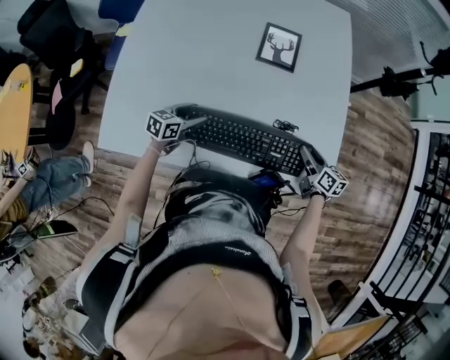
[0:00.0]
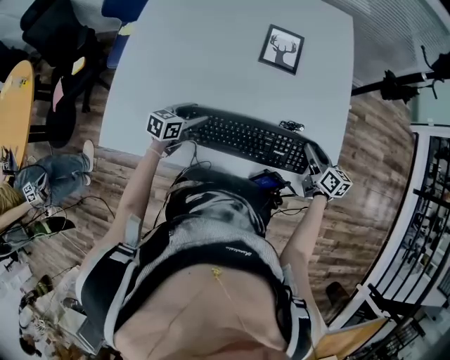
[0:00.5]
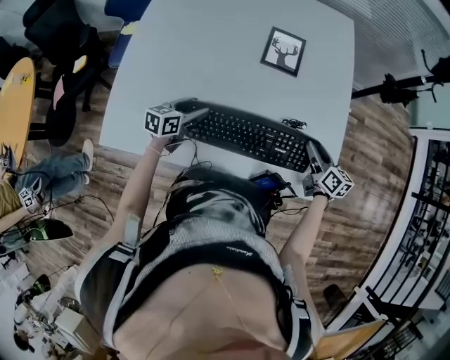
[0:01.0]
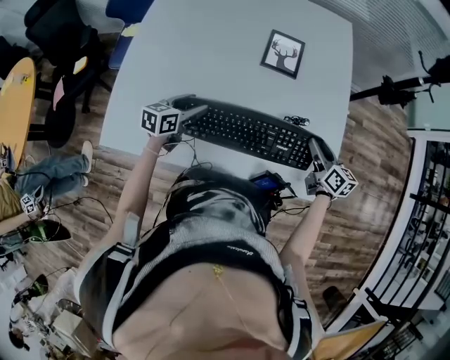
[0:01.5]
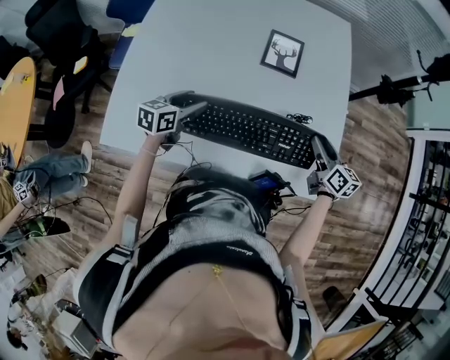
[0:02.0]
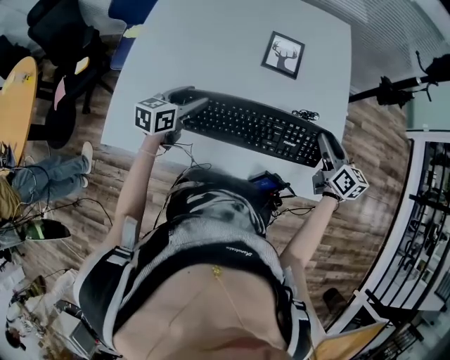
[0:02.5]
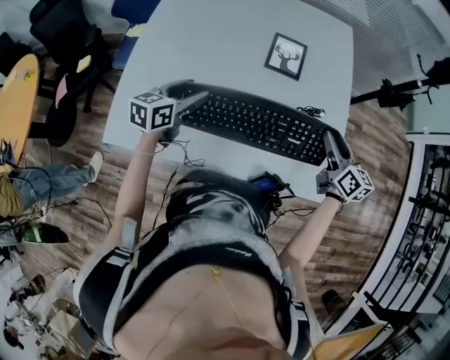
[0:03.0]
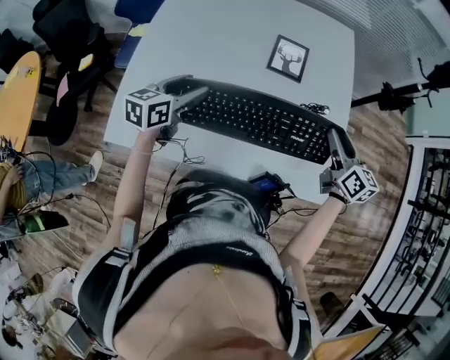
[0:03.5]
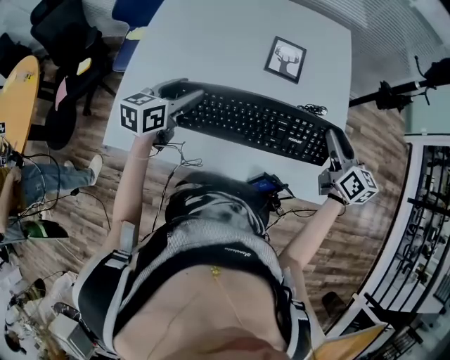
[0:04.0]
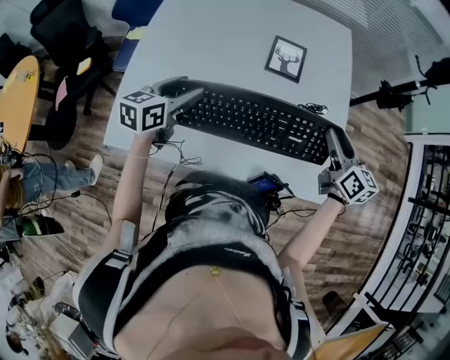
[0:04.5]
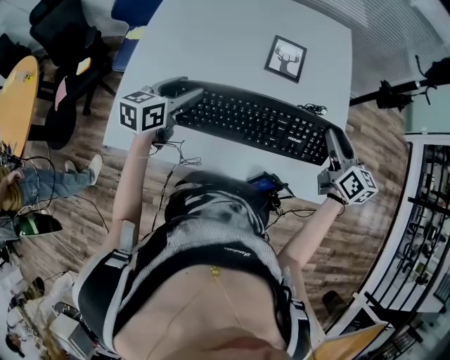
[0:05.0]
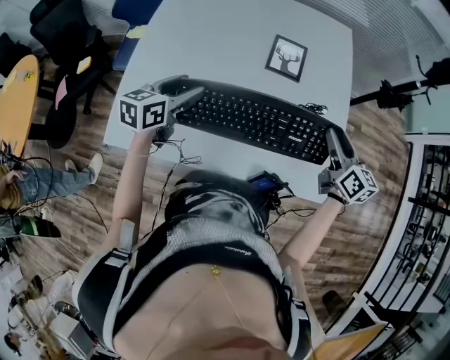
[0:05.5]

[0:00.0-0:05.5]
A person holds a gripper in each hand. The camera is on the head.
0:00.0 to 0:02.0: The grippers both shift upward by about 10 cm.
0:02.0 to 0:03.5: The grippers both shift upward by about 10 cm.
0:03.5 to 0:05.5: Neither gripper changes place.

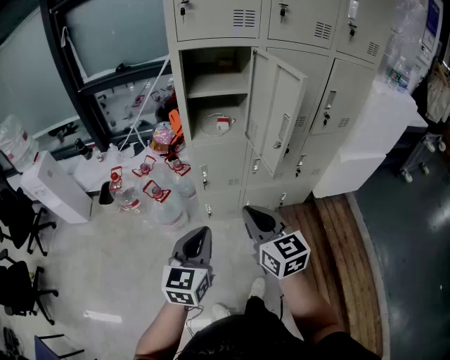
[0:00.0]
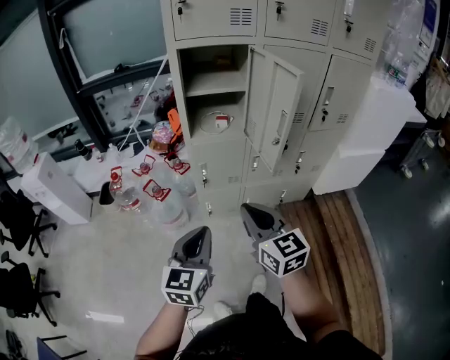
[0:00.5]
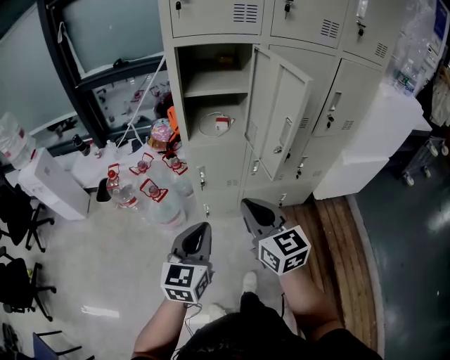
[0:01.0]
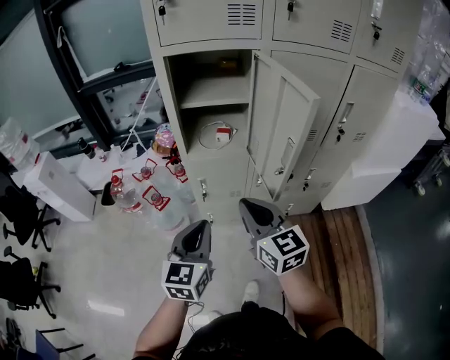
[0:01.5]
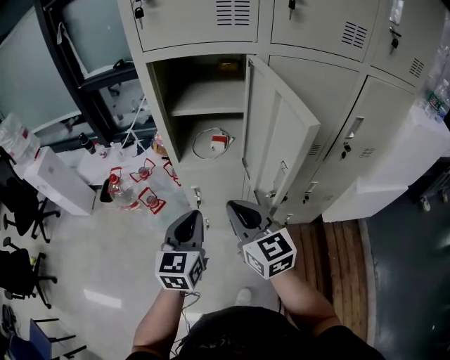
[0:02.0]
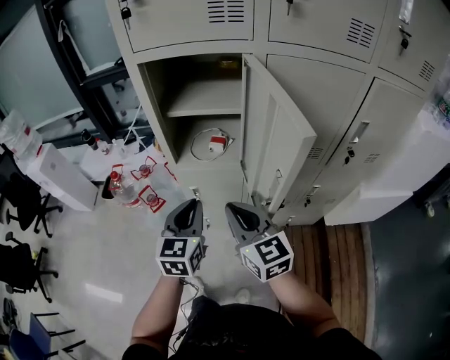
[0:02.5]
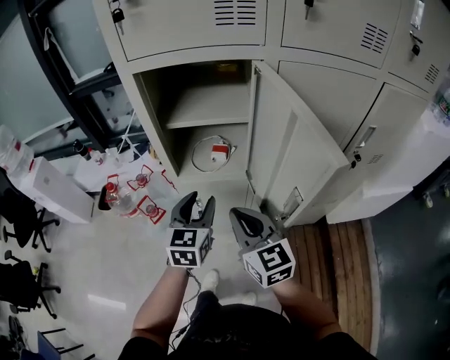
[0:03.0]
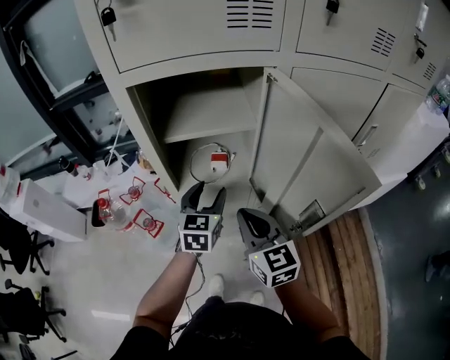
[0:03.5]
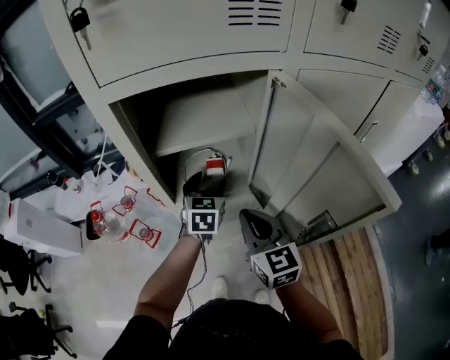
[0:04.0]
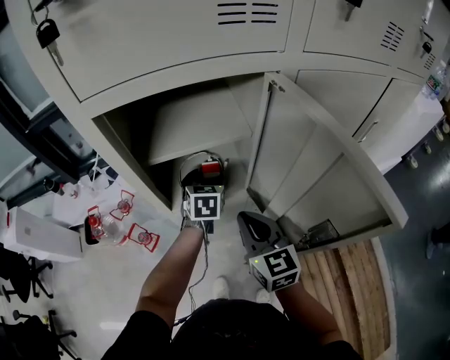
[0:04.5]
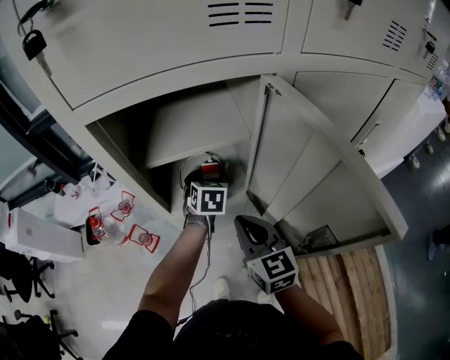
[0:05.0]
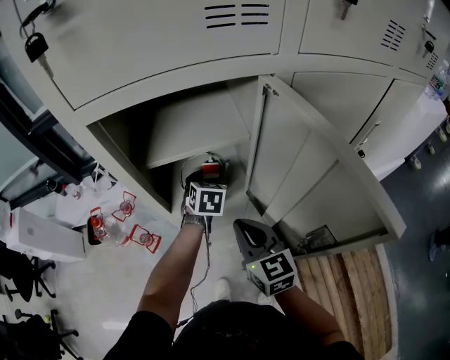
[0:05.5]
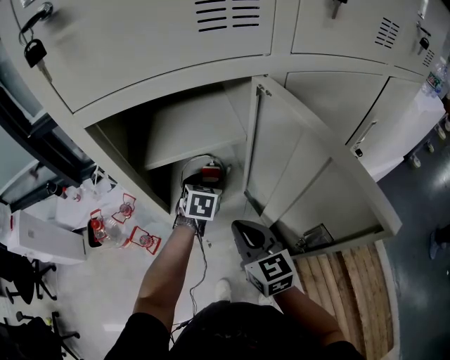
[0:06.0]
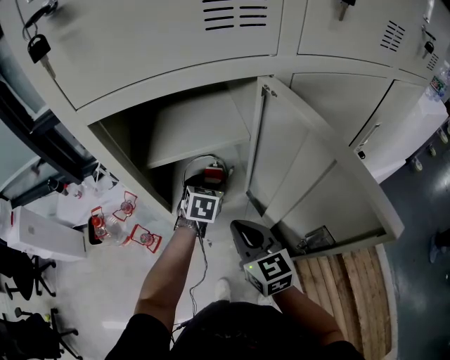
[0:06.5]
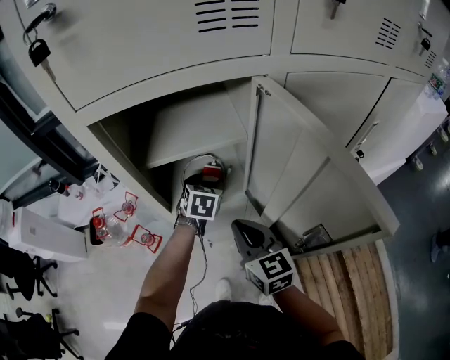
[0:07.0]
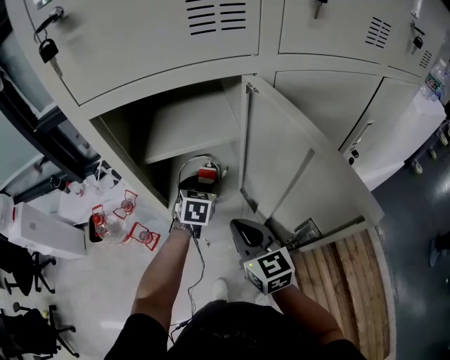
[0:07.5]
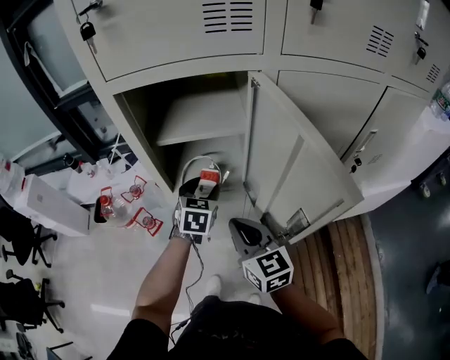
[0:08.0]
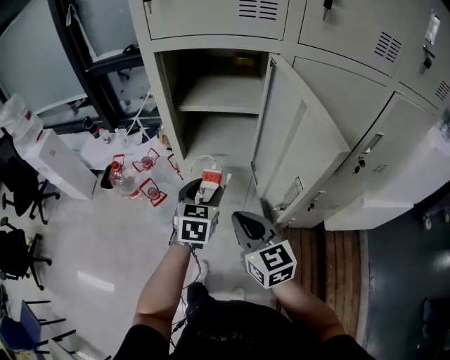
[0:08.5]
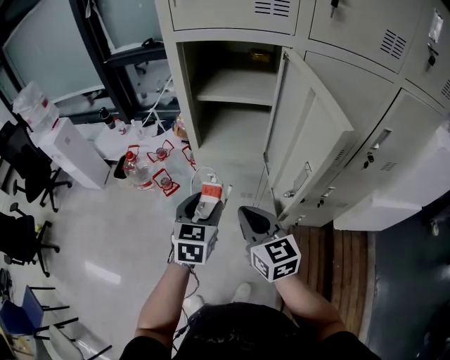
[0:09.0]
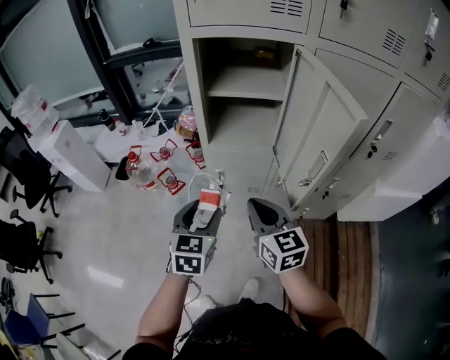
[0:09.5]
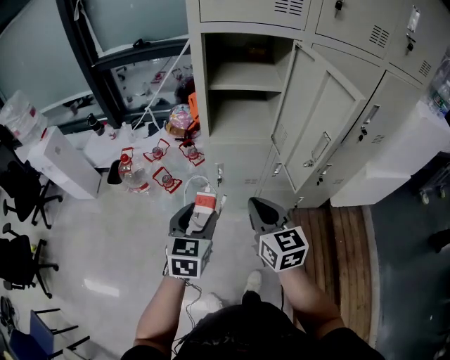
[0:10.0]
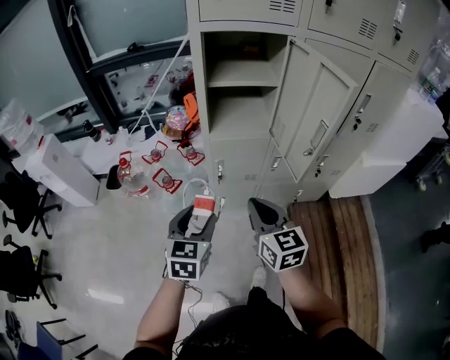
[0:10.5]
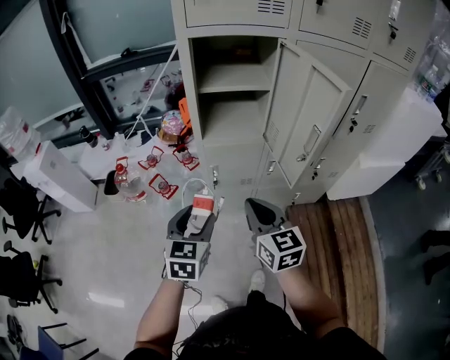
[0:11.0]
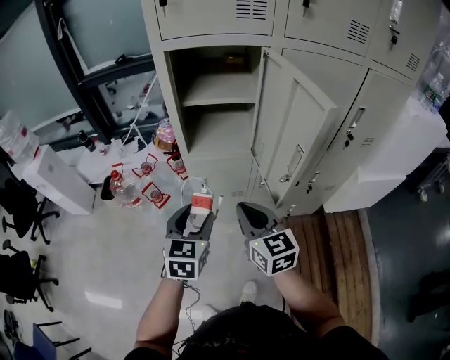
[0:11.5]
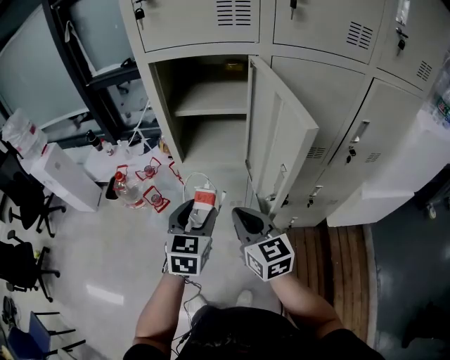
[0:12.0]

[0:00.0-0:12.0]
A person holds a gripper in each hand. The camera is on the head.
0:00.0 to 0:02.0: Both grippers move forward, about 20 cm.
0:02.0 to 0:04.0: The right gripper shifts approximately 15 cm forward, and changes its angle by approximately 20 degrees, while the left gripper is displaced forward by roughly 30 cm, swivels about 20 degrees, and opens.
0:04.0 to 0:06.0: The left gripper moves about 5 cm.
0:06.0 to 0:08.0: The left gripper goes approximately 10 cm backward, while the right gripper moves backward, approximately 5 cm.
0:08.0 to 0:10.0: The right gripper shifts about 15 cm backward and to the left. The left gripper moves backward and to the left, approximately 35 cm.
0:10.0 to 0:12.0: Both grippers move to the right and forward, some 15 cm.

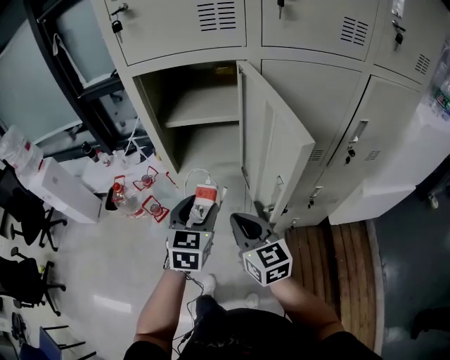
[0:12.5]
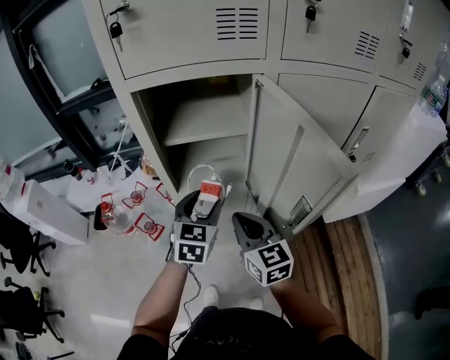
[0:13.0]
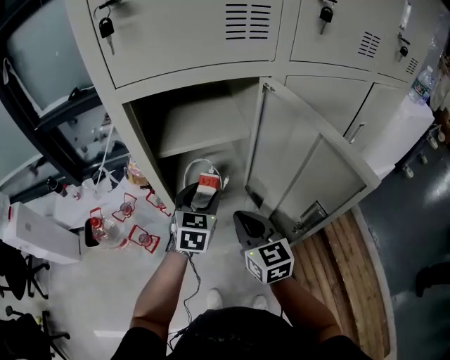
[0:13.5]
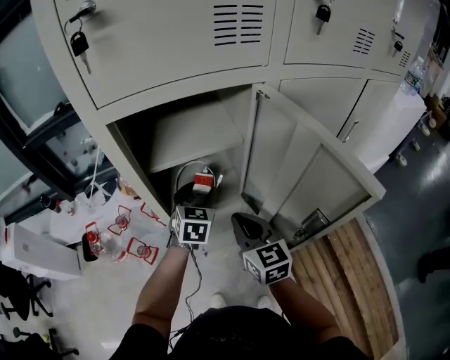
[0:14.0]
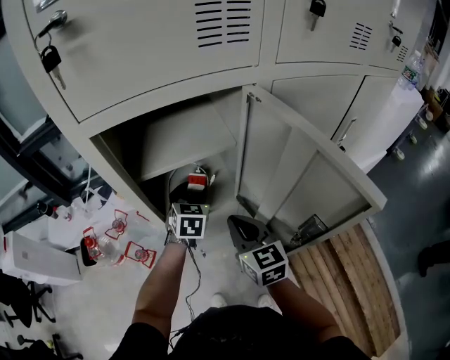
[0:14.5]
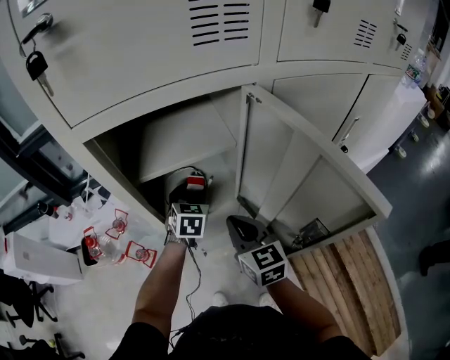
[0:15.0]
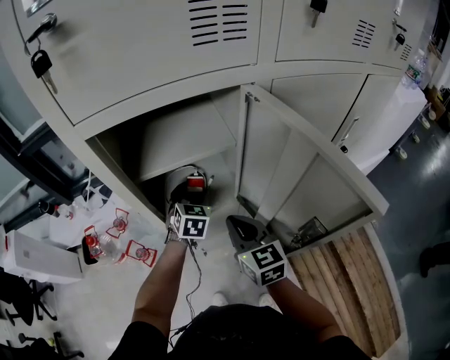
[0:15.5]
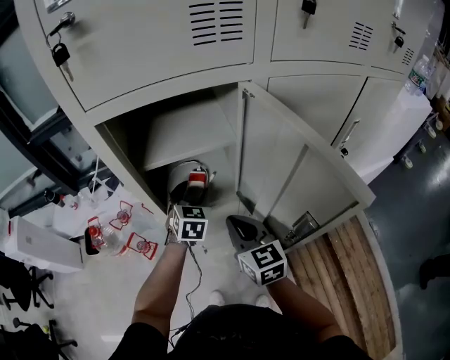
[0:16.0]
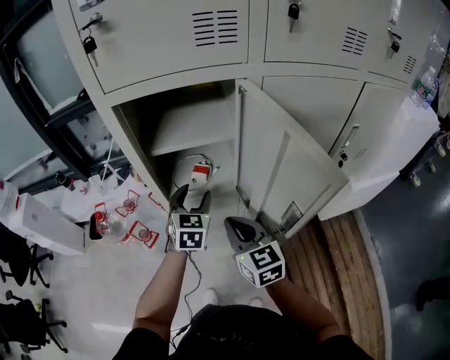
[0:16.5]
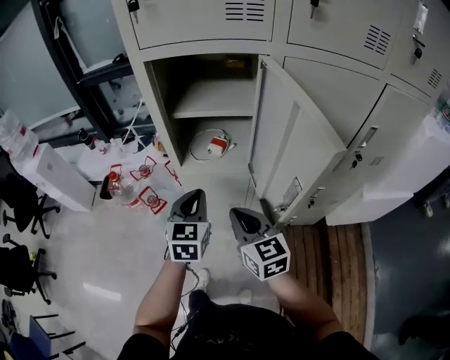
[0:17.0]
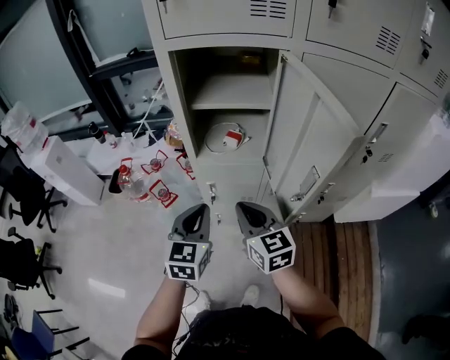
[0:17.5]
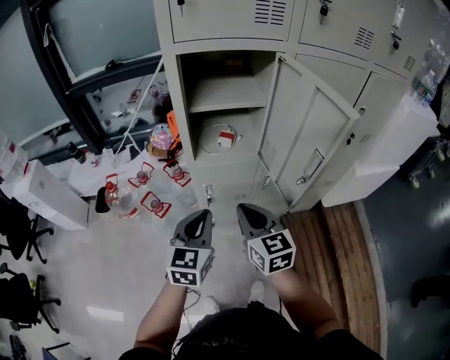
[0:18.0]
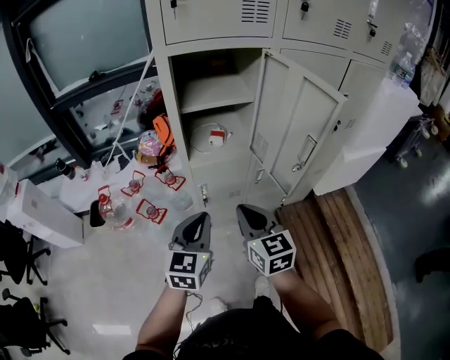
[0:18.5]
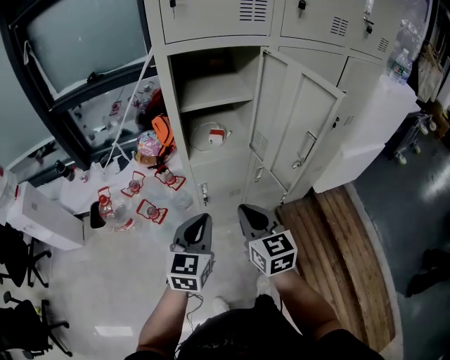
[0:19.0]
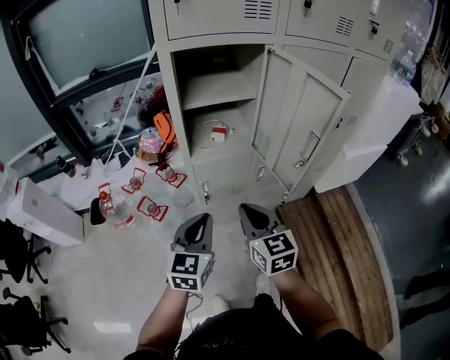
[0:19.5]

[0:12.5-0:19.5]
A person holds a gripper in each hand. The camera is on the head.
0:12.5 to 0:14.5: The right gripper moves forward, about 15 cm, and turns by approximately 20 degrees, while the left gripper goes roughly 25 cm forward.
0:14.5 to 0:16.0: The grippers make only small movements.
0:16.0 to 0:17.5: The right gripper goes some 10 cm backward. The left gripper shifts roughly 25 cm backward, swivels roughly 20 degrees, and closes.
0:17.5 to 0:19.5: The right gripper goes approximately 5 cm backward. Meanwhile the left gripper is displaced backward and to the left by roughly 10 cm.

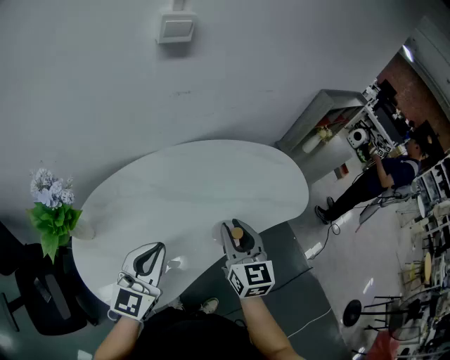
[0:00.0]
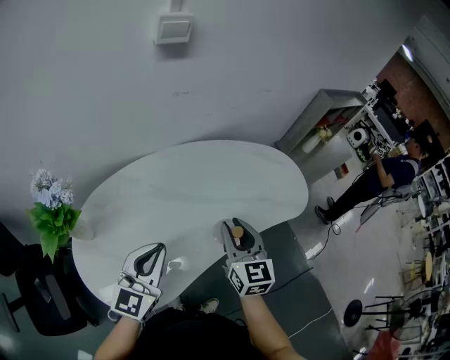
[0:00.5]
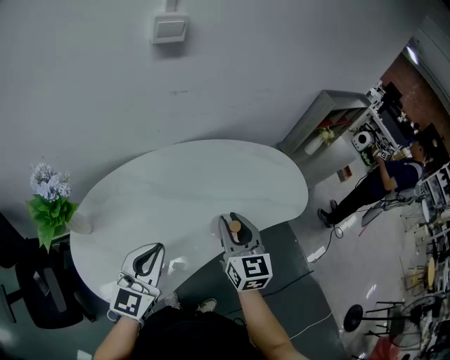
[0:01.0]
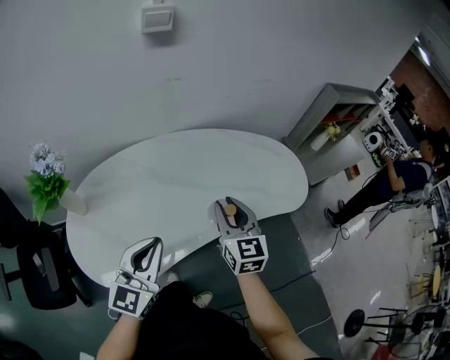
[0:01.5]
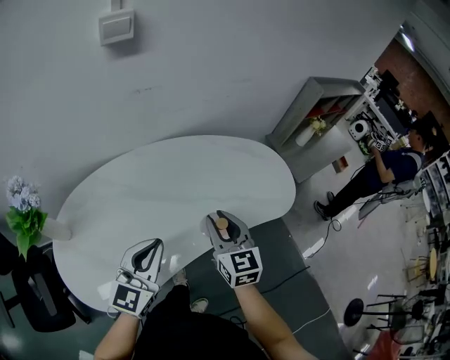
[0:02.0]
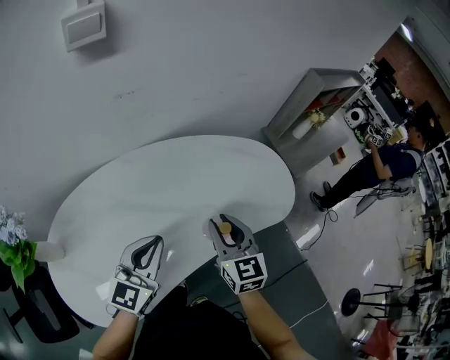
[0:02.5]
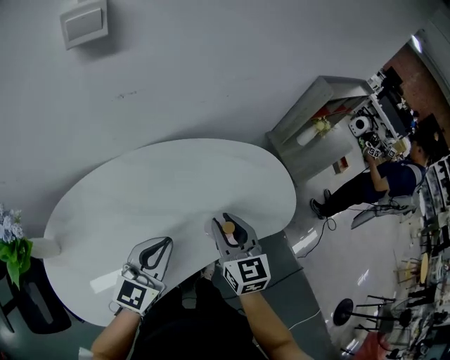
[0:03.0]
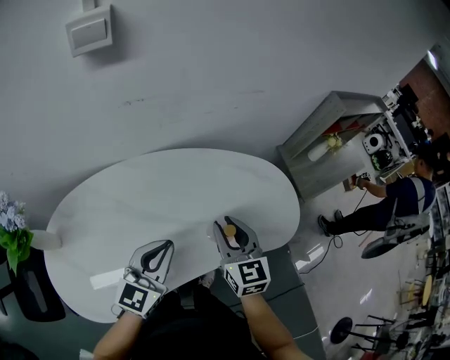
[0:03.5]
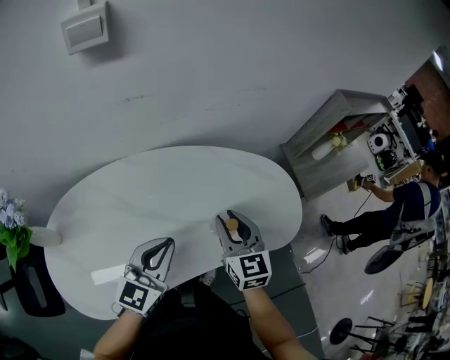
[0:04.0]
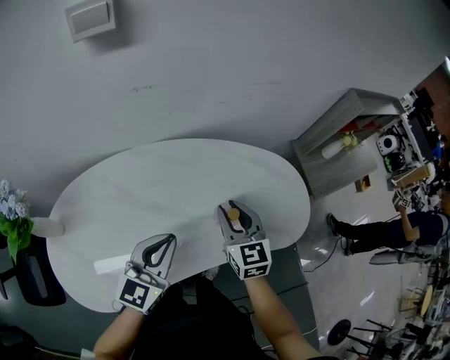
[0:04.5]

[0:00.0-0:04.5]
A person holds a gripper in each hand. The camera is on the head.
0:00.0 to 0:02.0: Both grippers move to the right, approximately 10 cm.
0:02.0 to 0:04.5: The right gripper shifts about 15 cm forward, while the left gripper is displaced forward and to the right by some 15 cm.
